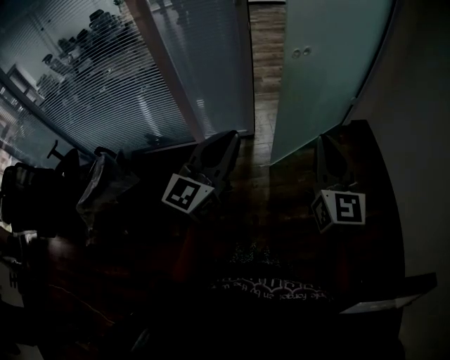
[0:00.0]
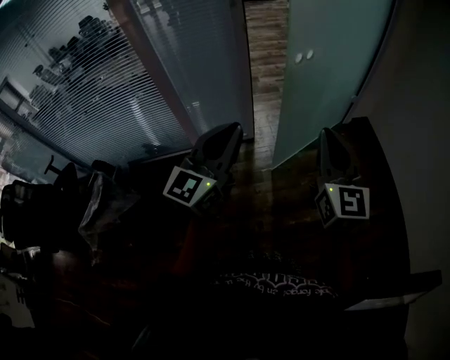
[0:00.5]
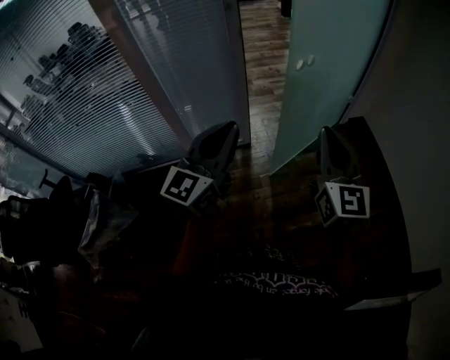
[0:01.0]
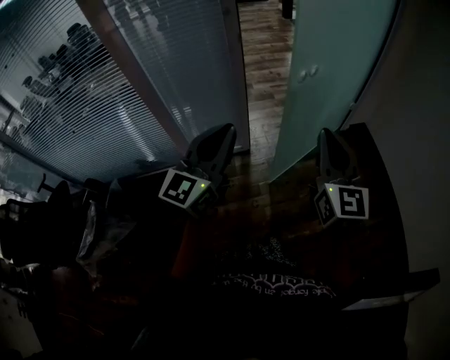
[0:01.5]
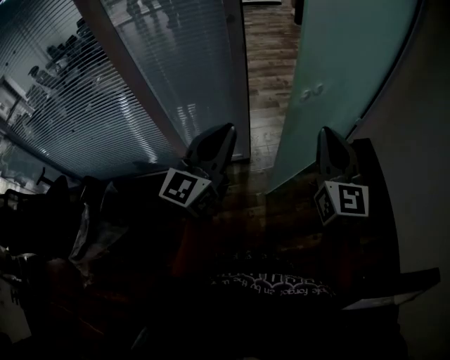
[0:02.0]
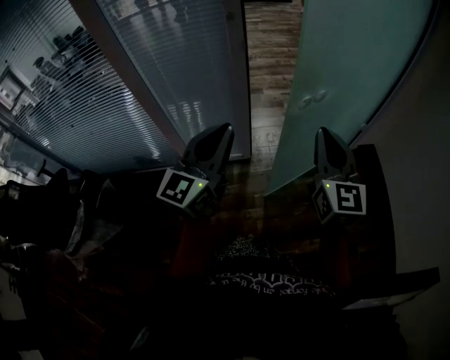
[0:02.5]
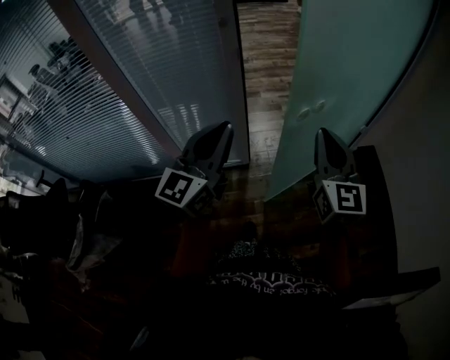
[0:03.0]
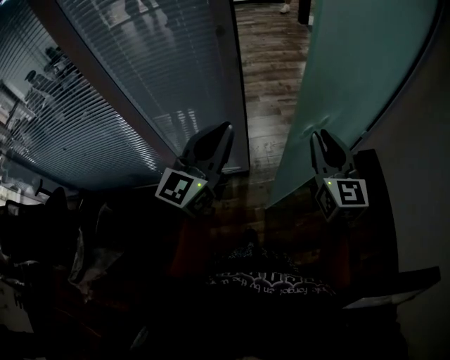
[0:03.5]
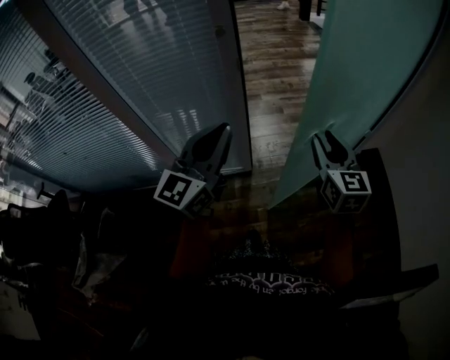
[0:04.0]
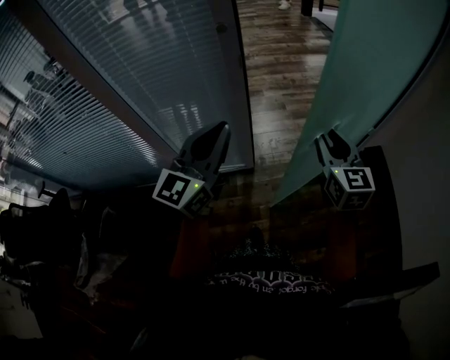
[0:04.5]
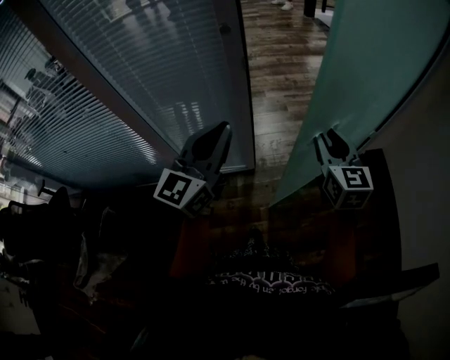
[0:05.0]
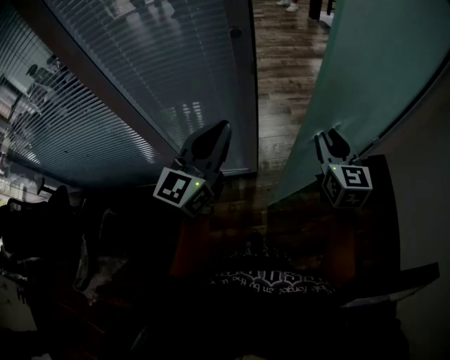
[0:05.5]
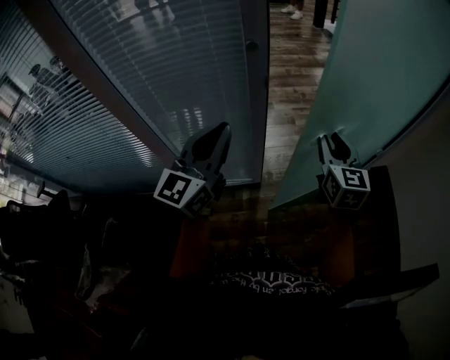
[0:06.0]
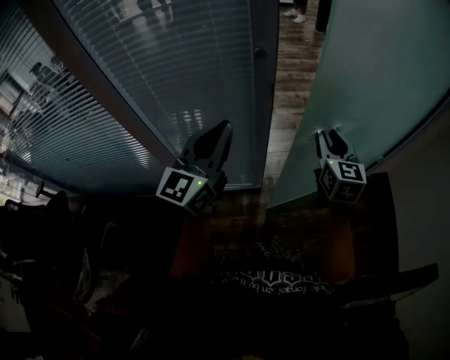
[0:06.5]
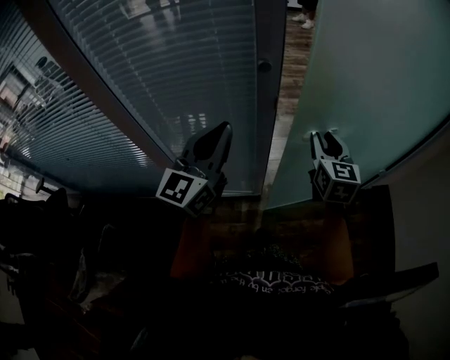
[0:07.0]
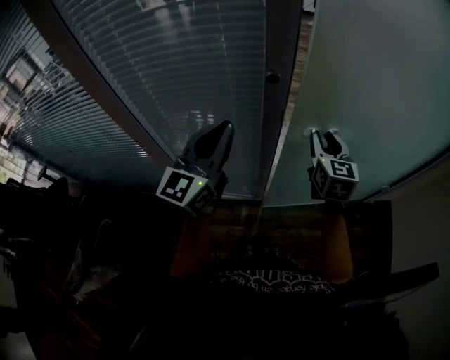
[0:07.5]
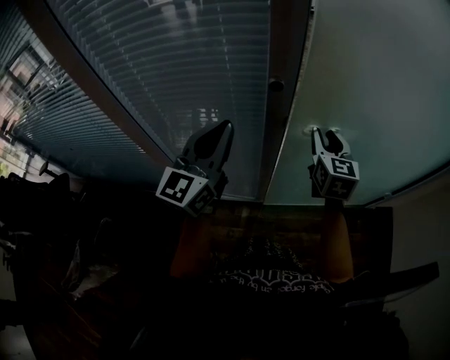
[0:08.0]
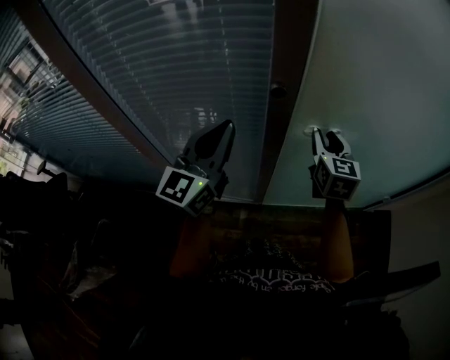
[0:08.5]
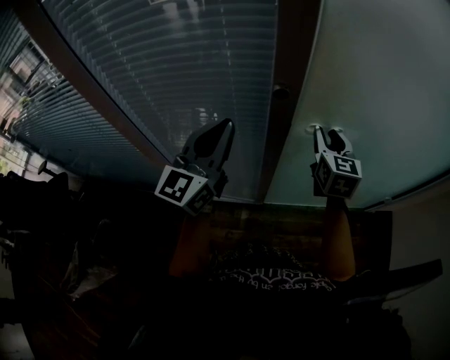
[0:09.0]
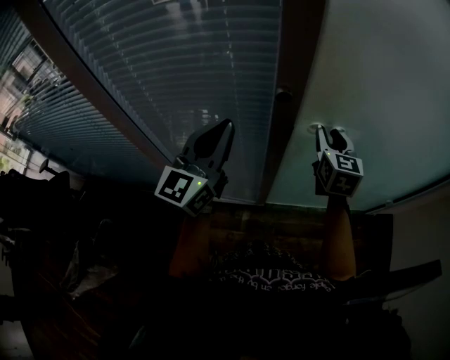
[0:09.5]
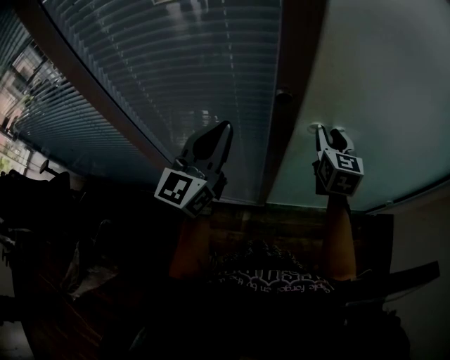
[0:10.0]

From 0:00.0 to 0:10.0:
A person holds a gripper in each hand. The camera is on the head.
From 0:00.0 to 0:02.0: The two grippers go some 25 cm forward.
From 0:02.0 to 0:04.0: The right gripper moves forward and downward, some 20 cm, and opens up; the left gripper is displaced forward by roughly 15 cm.
From 0:04.0 to 0:06.0: The right gripper is displaced forward and to the left by some 10 cm; the left gripper heads to the left and forward, covering approximately 10 cm.
From 0:06.0 to 0:08.0: The left gripper moves forward, roughly 10 cm. Meanwhile the right gripper shifts roughly 20 cm forward and to the left.
From 0:08.0 to 0:10.0: The grippers stay close to where they were, moving slightly.

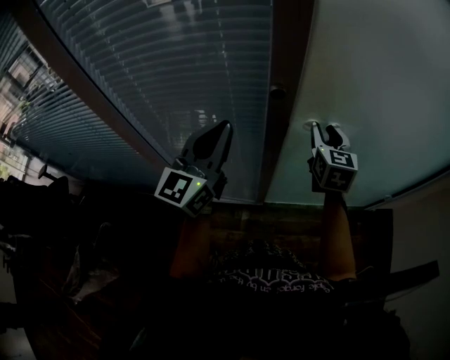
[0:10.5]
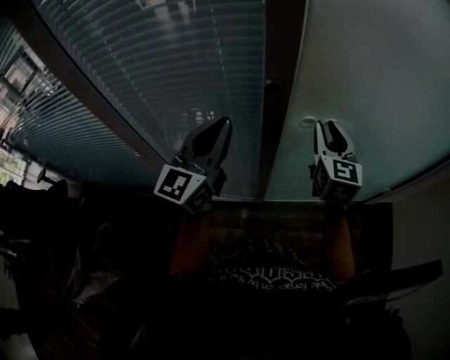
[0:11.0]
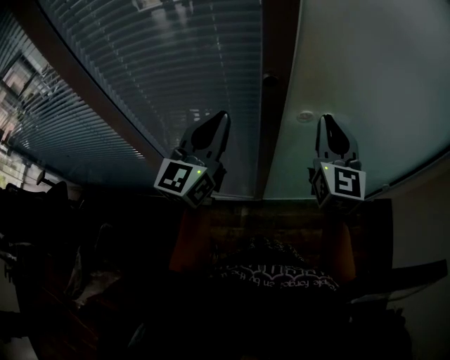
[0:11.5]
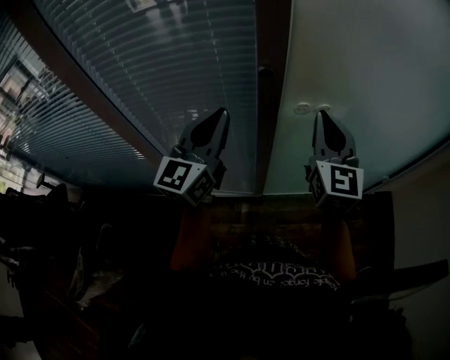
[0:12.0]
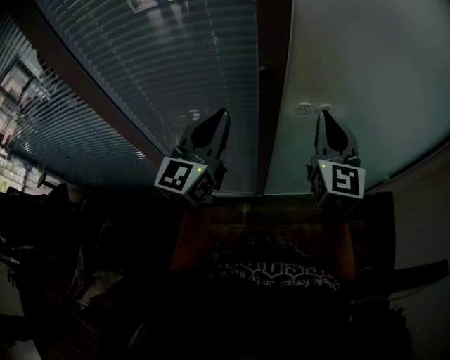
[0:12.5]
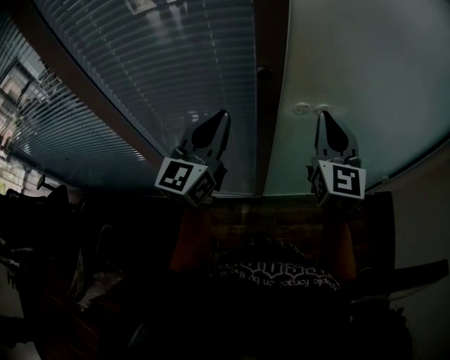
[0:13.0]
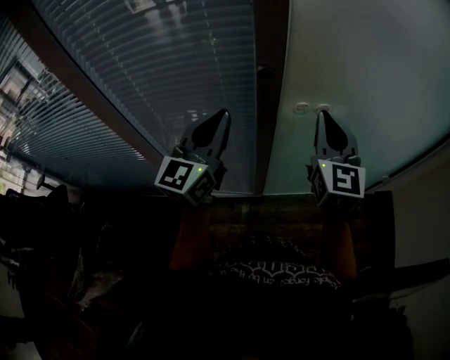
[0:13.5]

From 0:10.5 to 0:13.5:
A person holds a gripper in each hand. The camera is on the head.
From 0:10.5 to 0:12.0: The right gripper moves upward and backward, some 15 cm, and closes up.
From 0:12.0 to 0:13.5: Both grippers stay put.

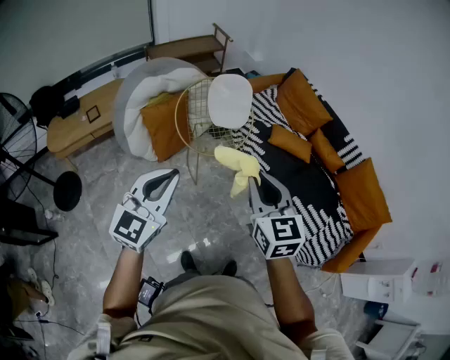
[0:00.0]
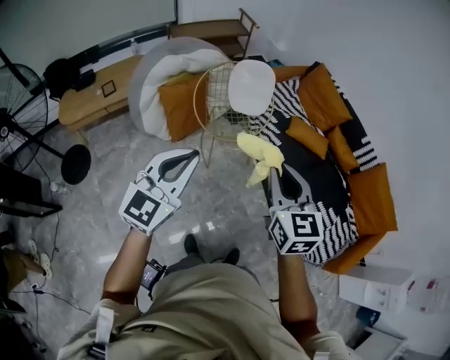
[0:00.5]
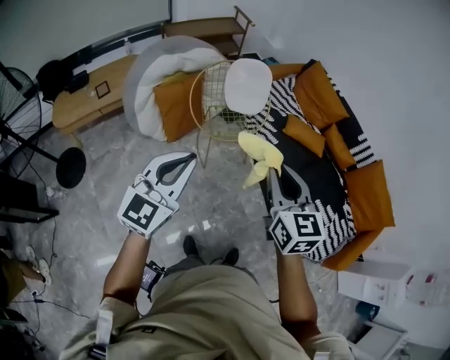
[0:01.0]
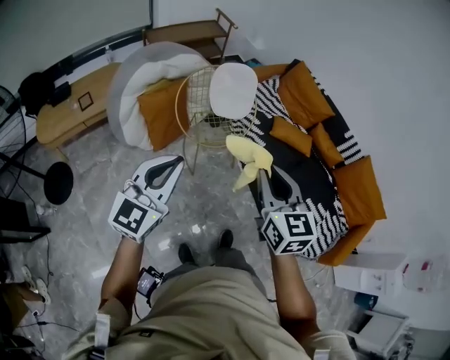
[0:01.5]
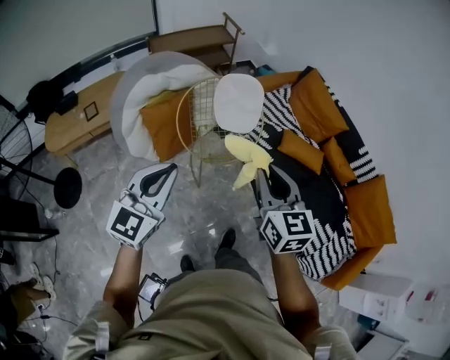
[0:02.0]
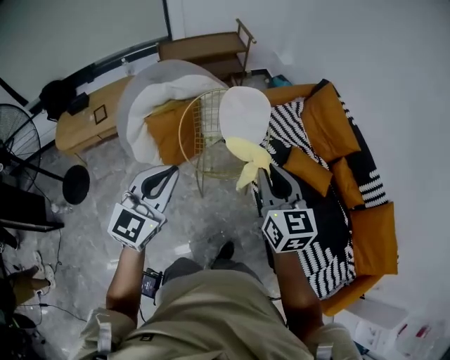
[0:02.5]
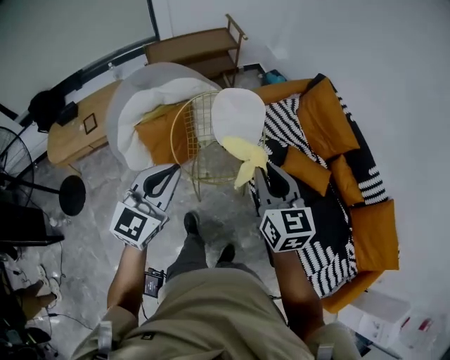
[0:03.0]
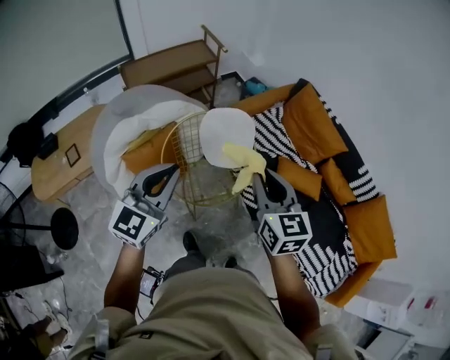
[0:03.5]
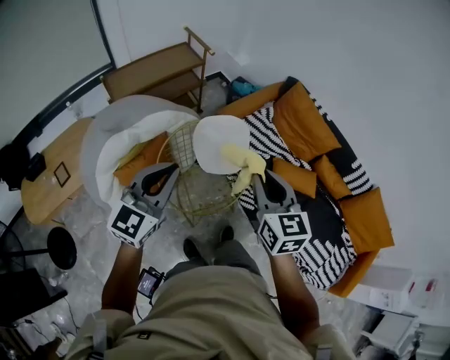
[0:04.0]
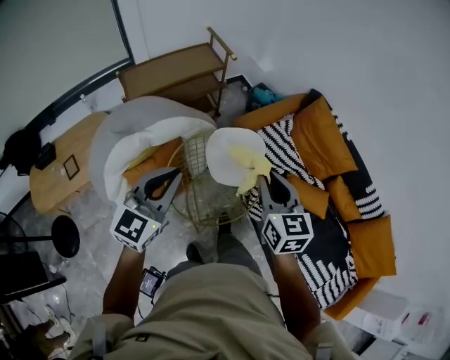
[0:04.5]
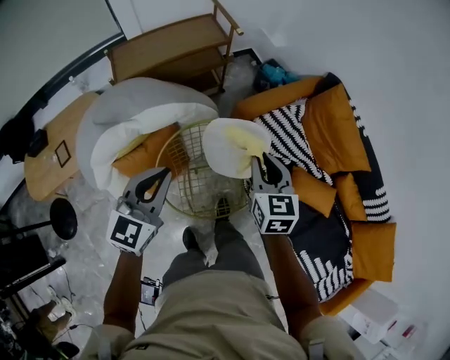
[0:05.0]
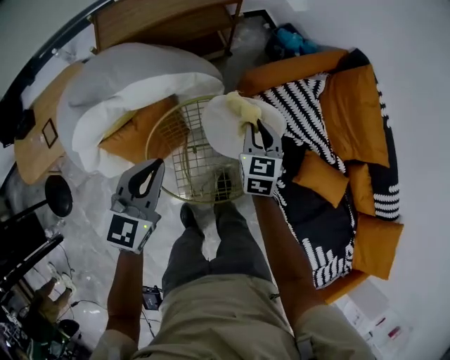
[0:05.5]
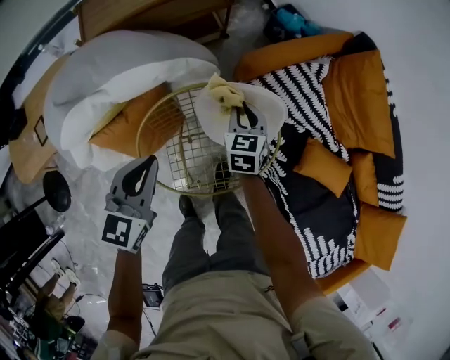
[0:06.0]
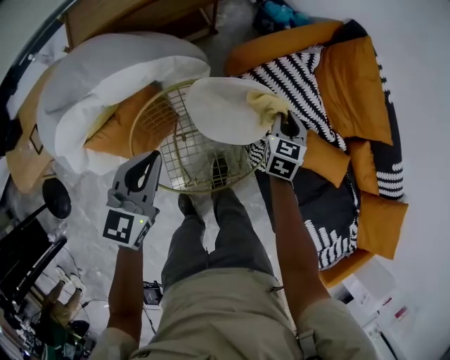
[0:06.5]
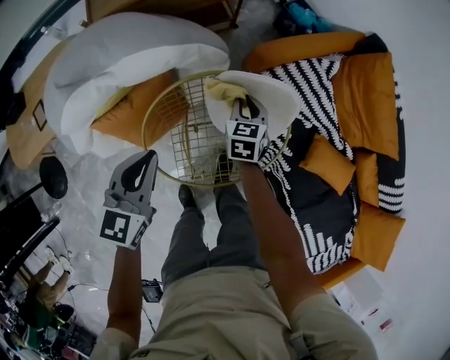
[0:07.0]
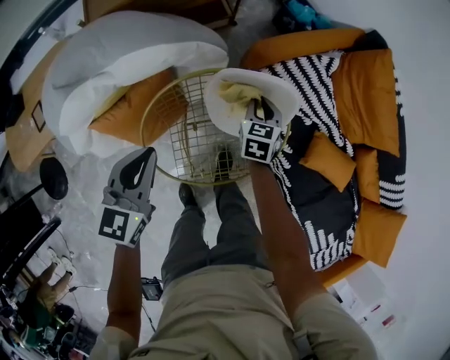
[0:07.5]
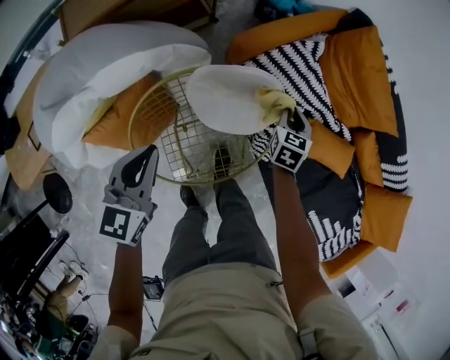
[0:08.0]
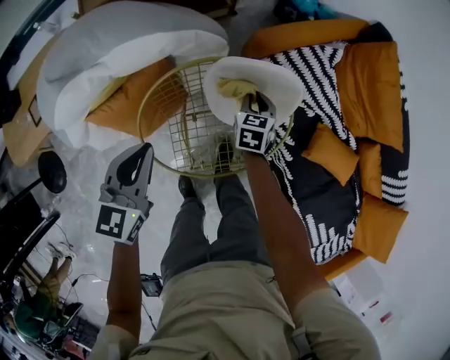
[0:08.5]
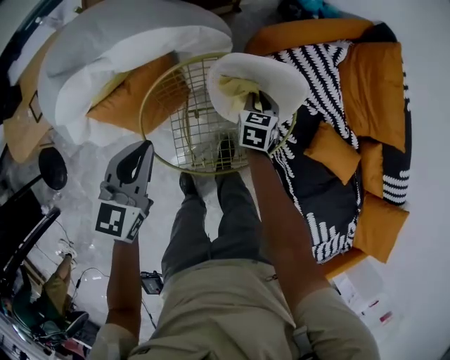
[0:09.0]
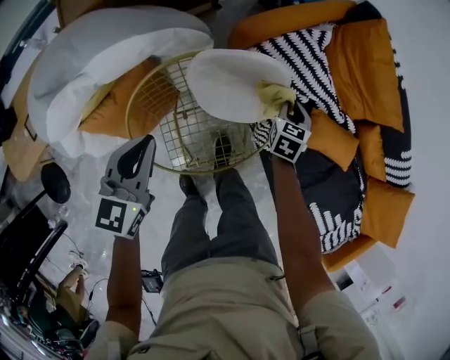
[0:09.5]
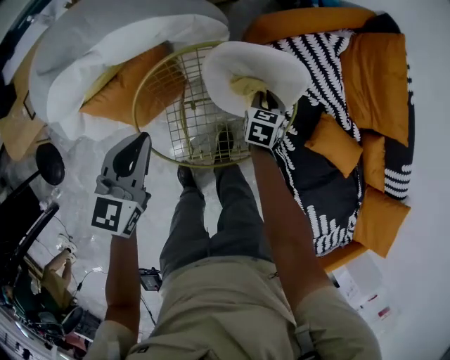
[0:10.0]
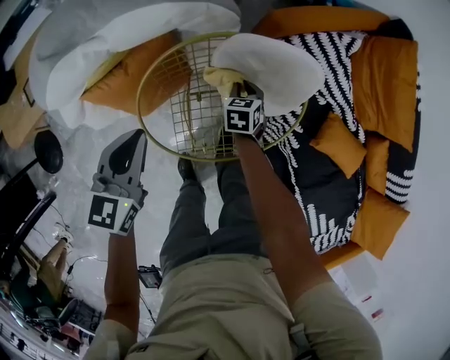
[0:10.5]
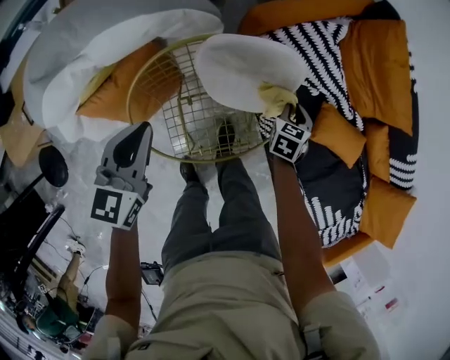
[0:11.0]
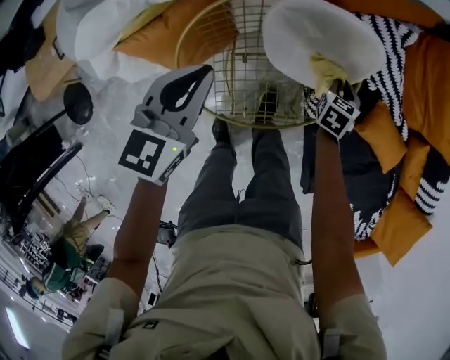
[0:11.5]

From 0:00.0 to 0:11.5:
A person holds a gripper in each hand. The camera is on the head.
From 0:00.0 to 0:02.0: The two grippers go approximately 15 cm forward.
From 0:02.0 to 0:04.0: Both grippers travel together forward, about 35 cm.
From 0:04.0 to 0:06.0: The right gripper shifts roughly 50 cm downward and forward, and changes its angle by approximately 20 degrees, while the left gripper shifts about 35 cm downward and forward, and changes its angle by some 30 degrees.
From 0:06.0 to 0:07.5: The right gripper goes left and right, roughly 20 cm each way, reversing 2 times.
From 0:07.5 to 0:09.5: The right gripper moves left and right over some 20 cm, changing direction 2 times; the left gripper moves left and right over about 5 cm, changing direction 2 times.
From 0:09.5 to 0:11.5: The right gripper goes left and right, about 20 cm each way, reversing 2 times.

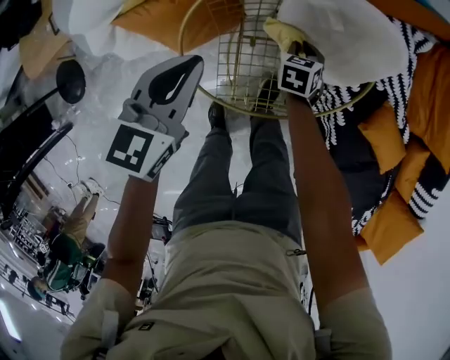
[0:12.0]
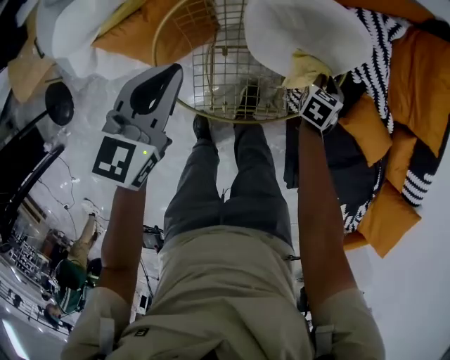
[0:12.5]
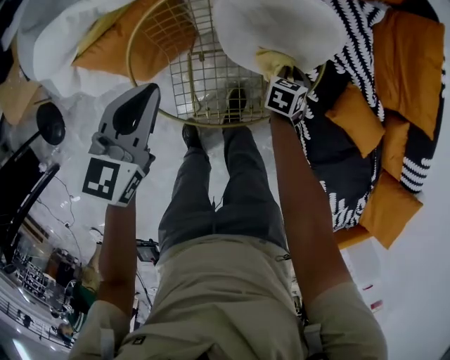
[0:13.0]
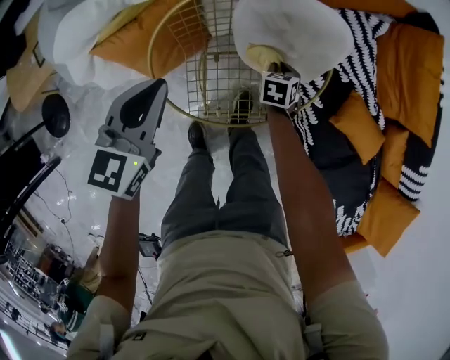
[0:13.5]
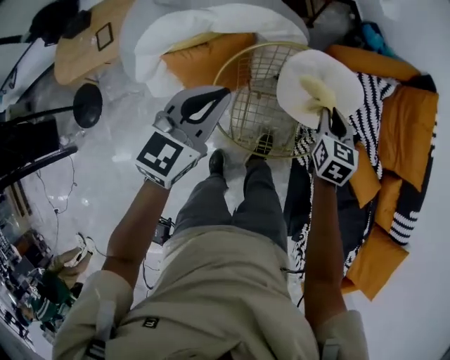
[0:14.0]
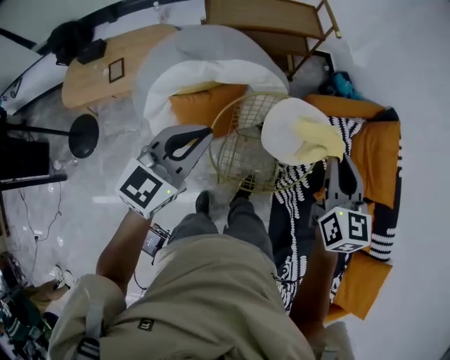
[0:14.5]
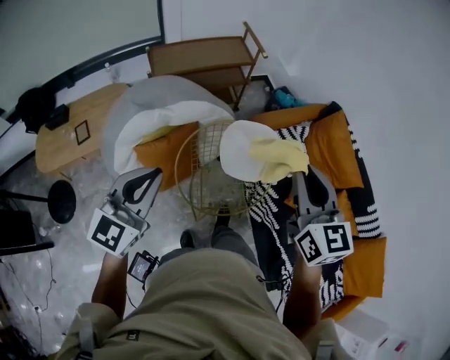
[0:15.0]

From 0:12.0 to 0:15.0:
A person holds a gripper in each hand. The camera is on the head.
From 0:12.0 to 0:13.5: The right gripper heads to the right, covering approximately 10 cm.
From 0:13.5 to 0:15.0: The right gripper goes roughly 70 cm upward, and angles its fingers upward, by roughly 60 degrees. The left gripper travels upward and backward by some 40 cm, and turns by some 20 degrees.
